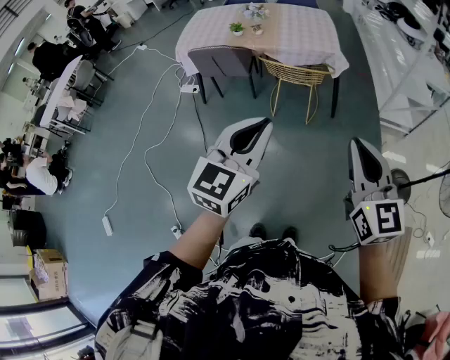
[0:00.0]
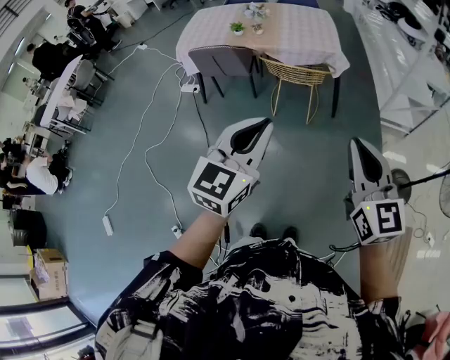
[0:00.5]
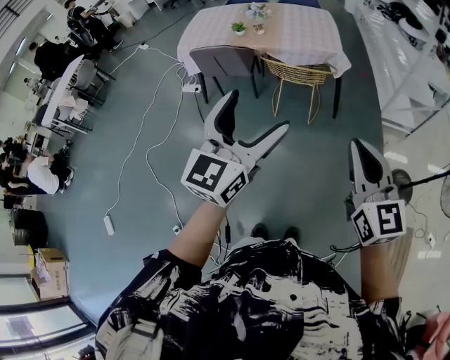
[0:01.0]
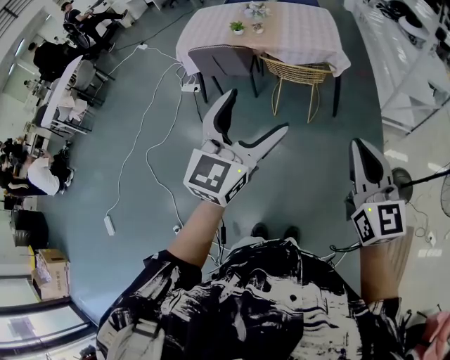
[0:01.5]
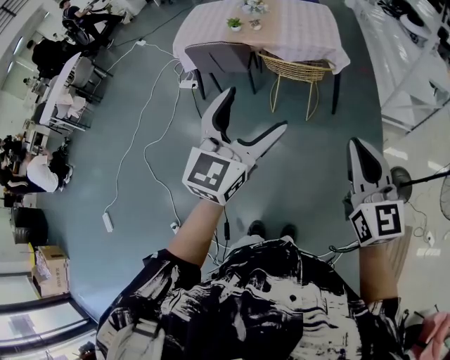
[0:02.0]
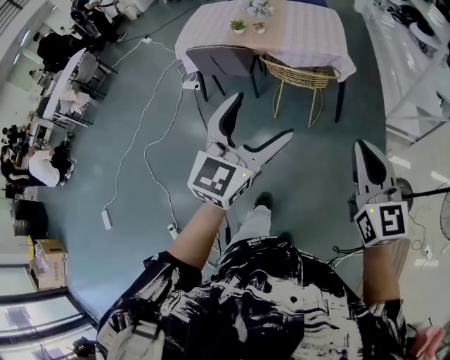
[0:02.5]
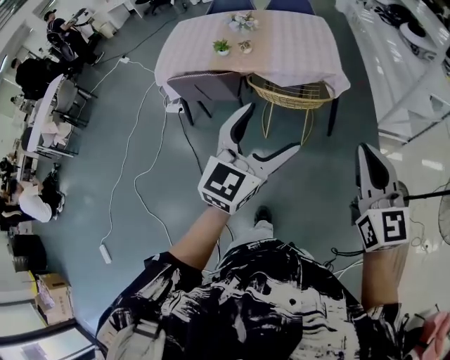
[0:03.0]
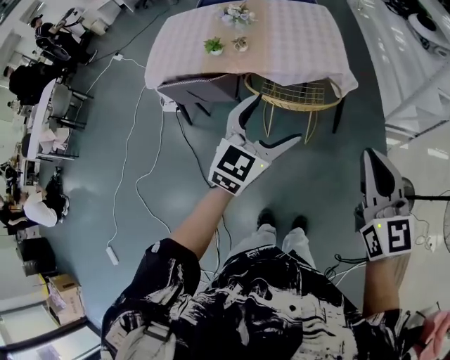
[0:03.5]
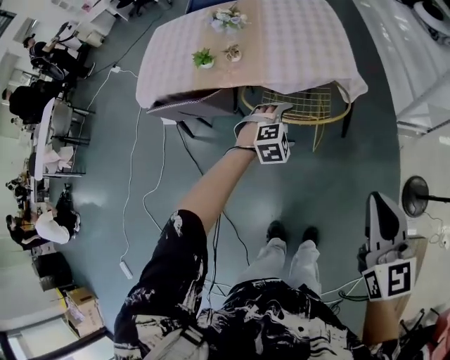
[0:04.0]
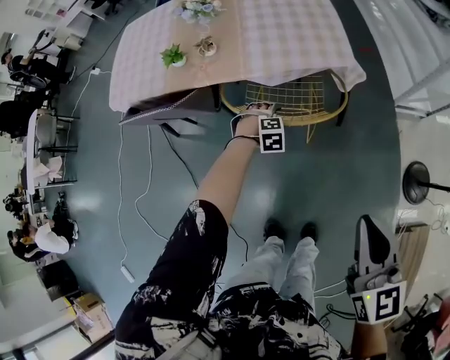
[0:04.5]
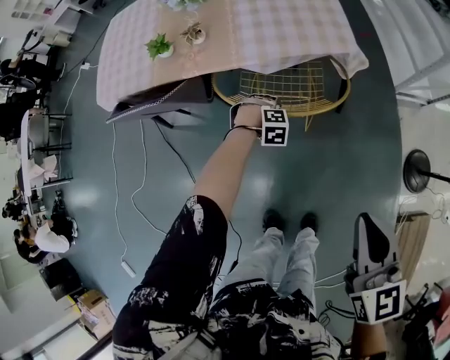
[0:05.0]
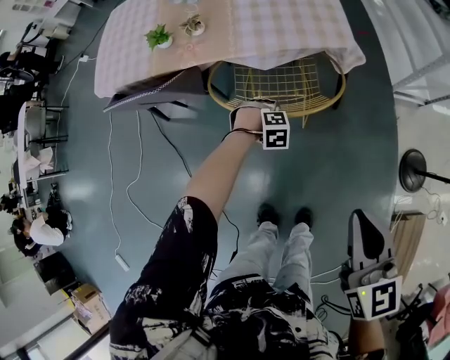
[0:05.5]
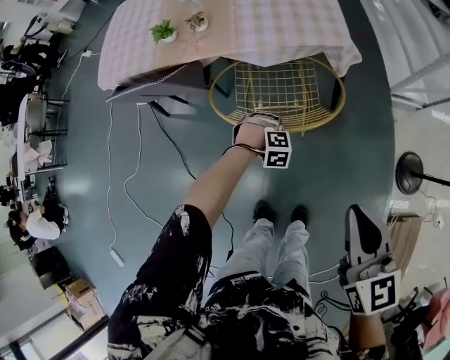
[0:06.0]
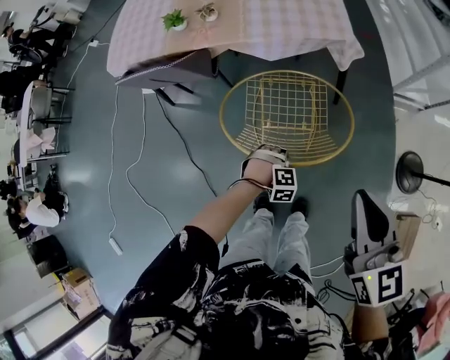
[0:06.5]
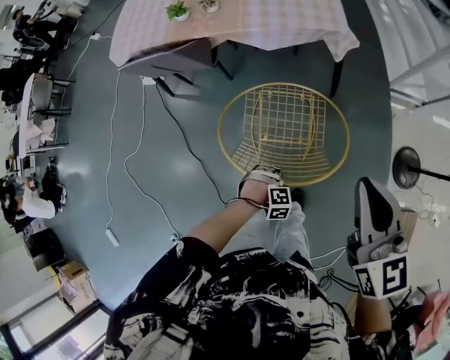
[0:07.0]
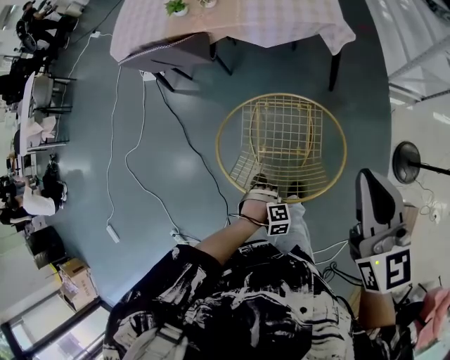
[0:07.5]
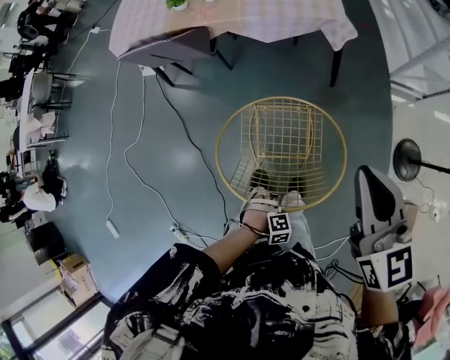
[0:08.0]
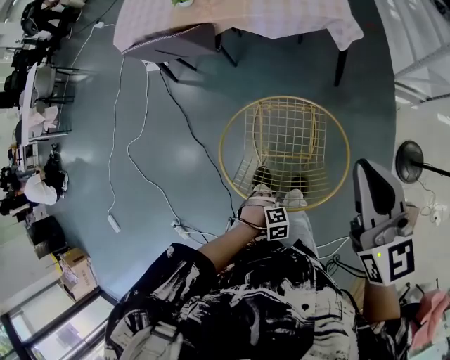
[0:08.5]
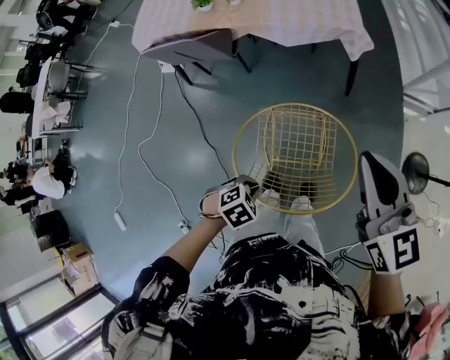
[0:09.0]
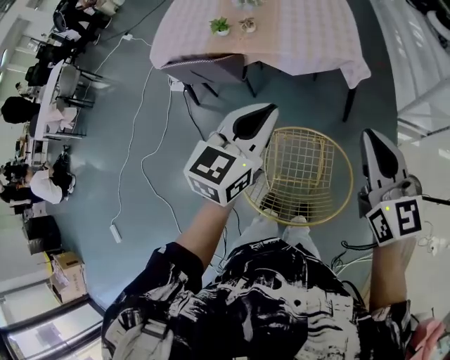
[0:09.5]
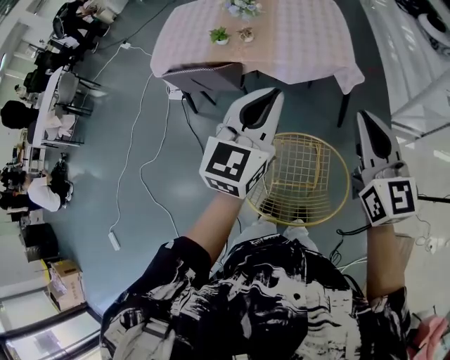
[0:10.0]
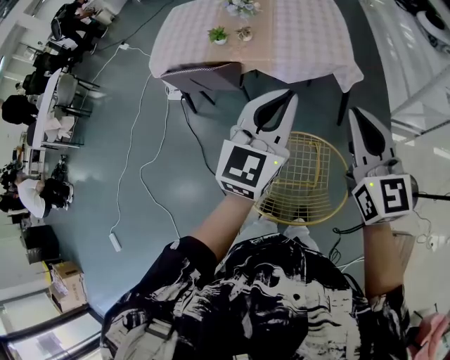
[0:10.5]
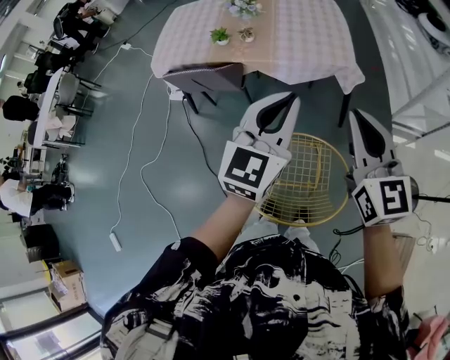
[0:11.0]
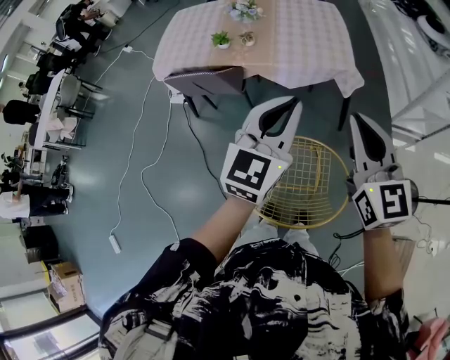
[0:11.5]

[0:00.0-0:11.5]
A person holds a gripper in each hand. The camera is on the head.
0:00.0 to 0:02.0: The left gripper opens up.
0:02.0 to 0:04.0: Both grippers are carried forward, roughly 50 cm. The left gripper heads downward, covering some 40 cm, and tilts its fingers about 60 degrees downward.
0:04.0 to 0:06.0: The right gripper moves downward, roughly 10 cm. The left gripper heads downward, covering roughly 20 cm, rotates about 20 degrees, and closes up.
0:06.0 to 0:07.5: The right gripper shifts about 10 cm upward. Meanwhile the left gripper ends up roughly 40 cm from where it was.
0:07.5 to 0:09.5: The left gripper shifts approximately 50 cm upward, and tips its fingers upward by roughly 70 degrees; the right gripper shifts by approximately 10 cm.
0:09.5 to 0:11.5: Both grippers move upward, about 5 cm.

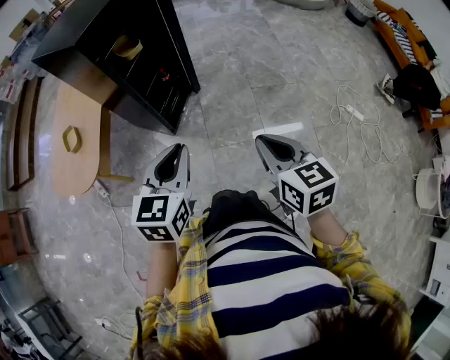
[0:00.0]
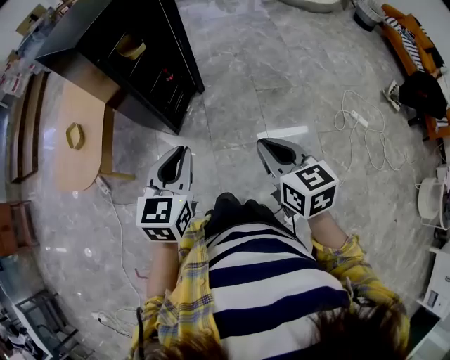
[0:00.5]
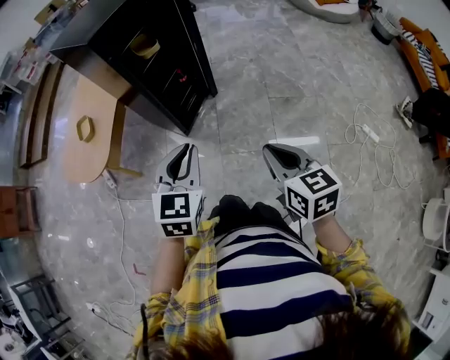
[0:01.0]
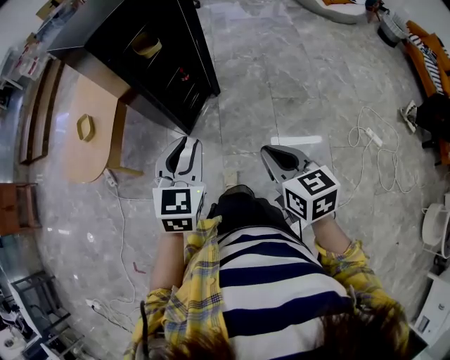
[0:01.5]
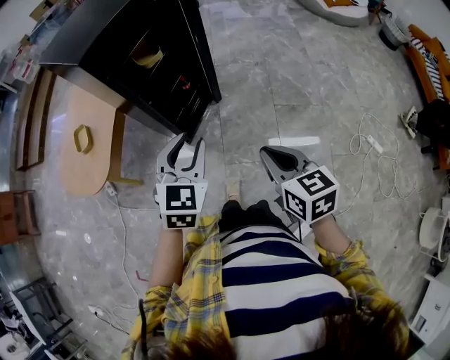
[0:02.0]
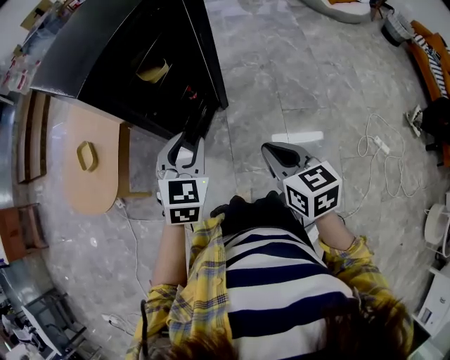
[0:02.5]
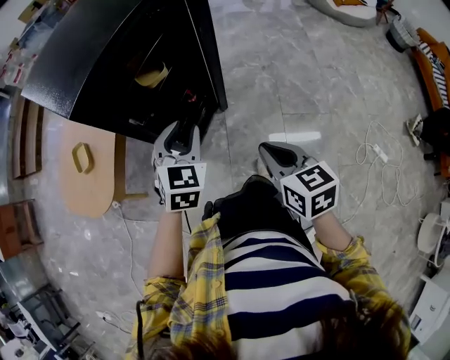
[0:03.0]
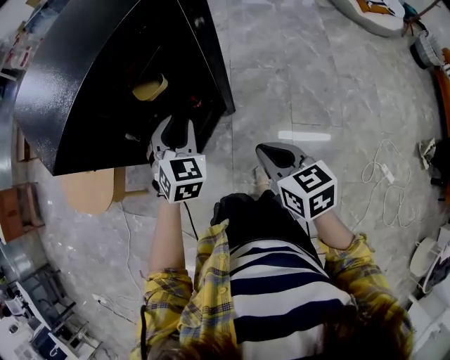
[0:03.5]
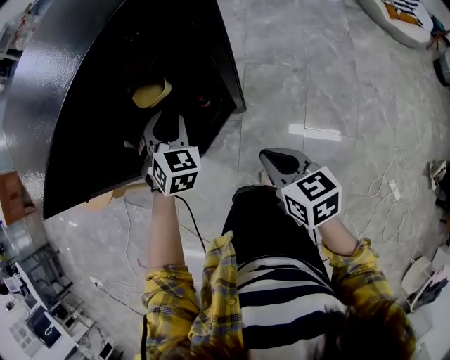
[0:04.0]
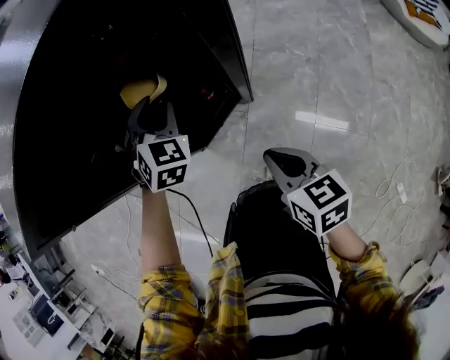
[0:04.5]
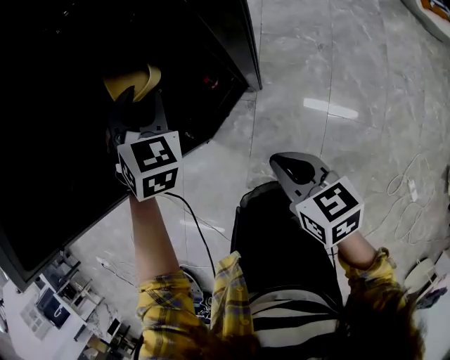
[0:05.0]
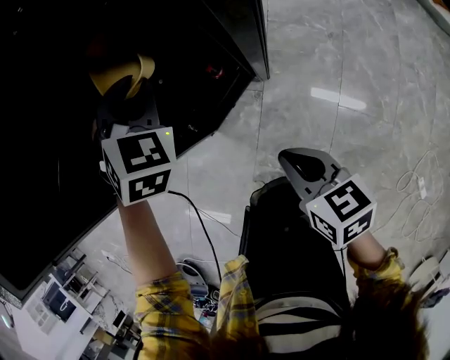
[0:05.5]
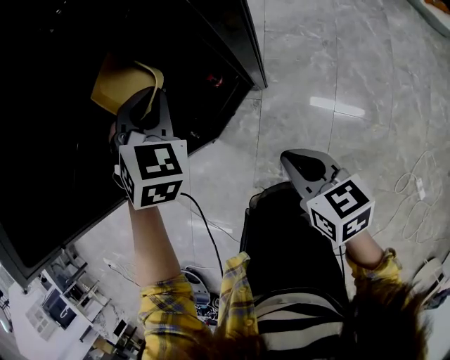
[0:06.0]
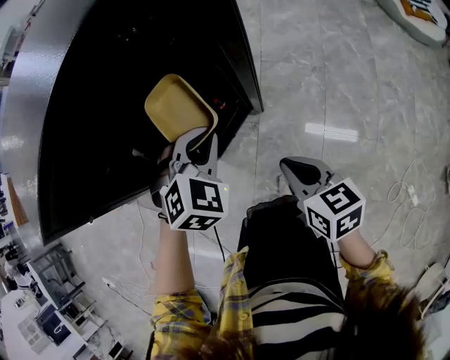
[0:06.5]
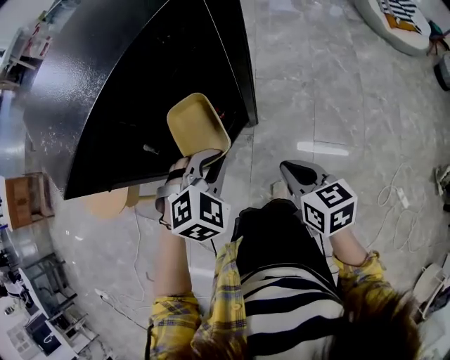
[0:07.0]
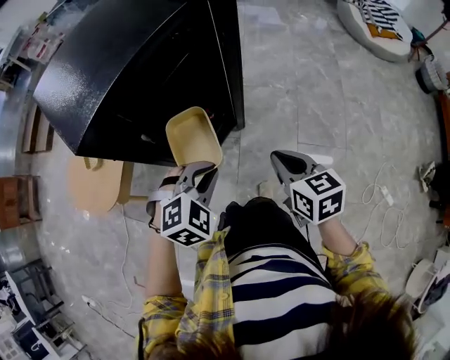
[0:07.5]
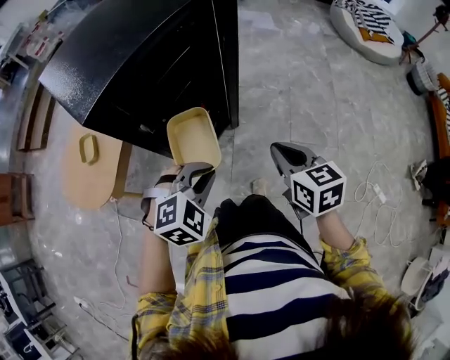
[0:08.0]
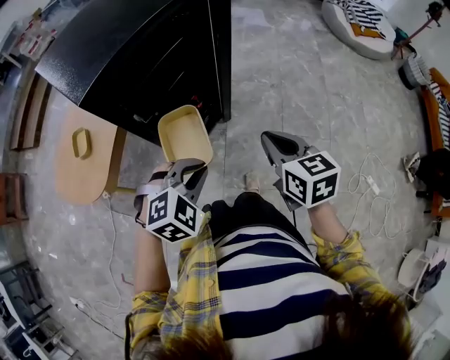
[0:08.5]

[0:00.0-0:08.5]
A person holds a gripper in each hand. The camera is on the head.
0:00.0 to 0:02.0: The grippers both shift forward by roughly 10 cm.
0:02.0 to 0:04.0: The right gripper shifts by about 25 cm. Meanwhile the left gripper changes place by roughly 35 cm, and turns by about 30 degrees.
0:04.0 to 0:06.5: The right gripper goes downward and returns, about 10 cm each way. Meanwhile the left gripper heads backward, covering approximately 5 cm, turns by some 20 degrees, and closes its fingers.
0:06.5 to 0:08.5: The left gripper is displaced backward by about 20 cm, and changes its angle by some 20 degrees; the right gripper heads upward and backward, covering roughly 15 cm.

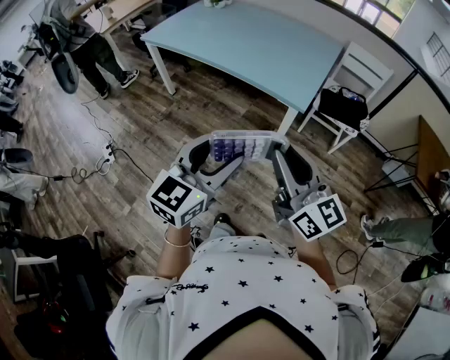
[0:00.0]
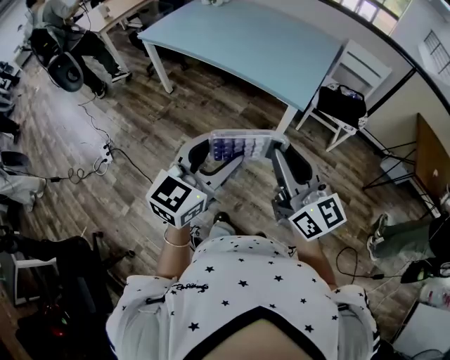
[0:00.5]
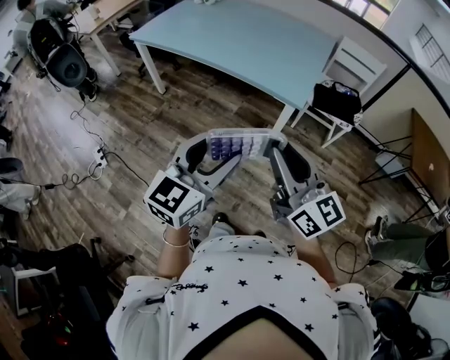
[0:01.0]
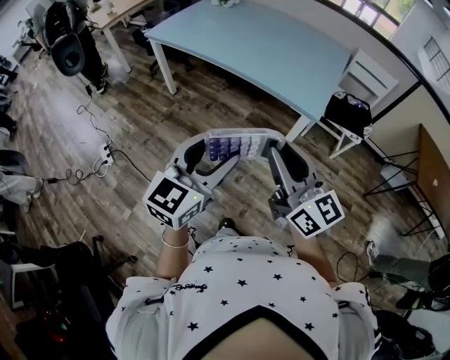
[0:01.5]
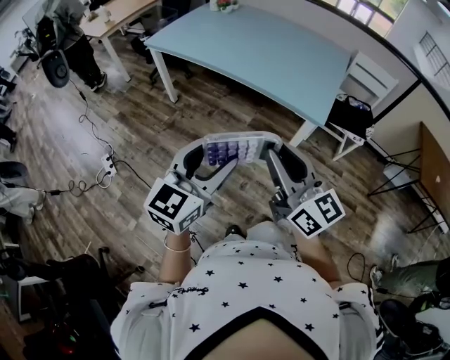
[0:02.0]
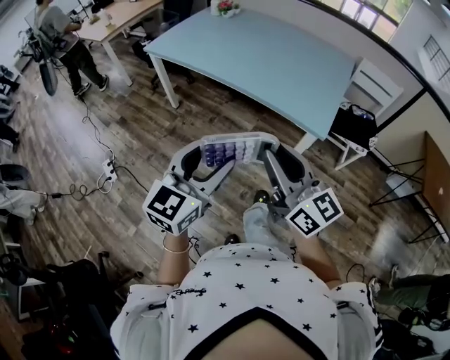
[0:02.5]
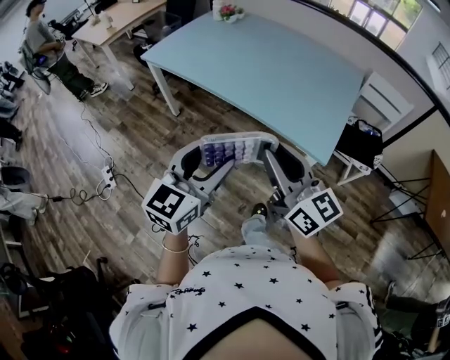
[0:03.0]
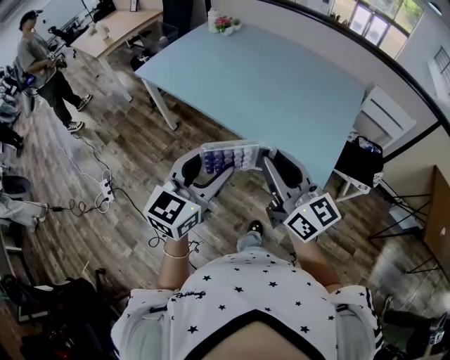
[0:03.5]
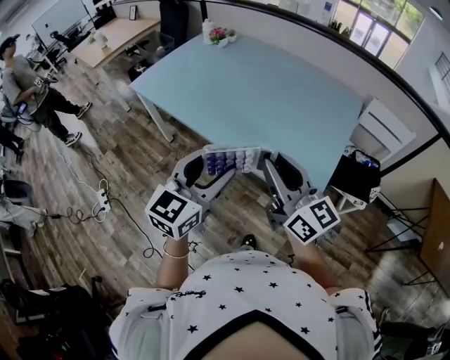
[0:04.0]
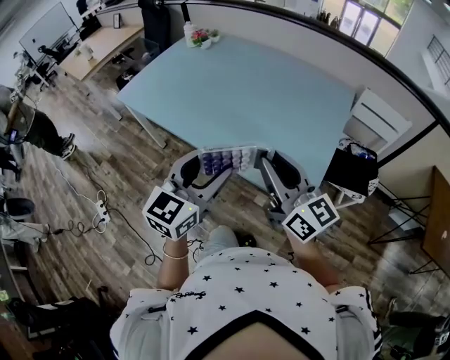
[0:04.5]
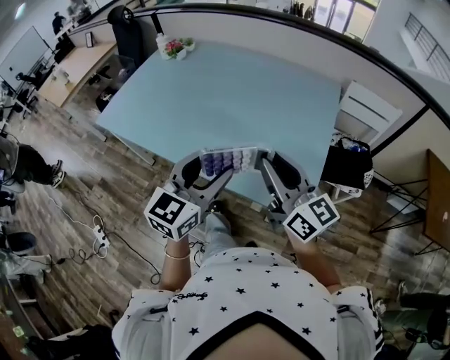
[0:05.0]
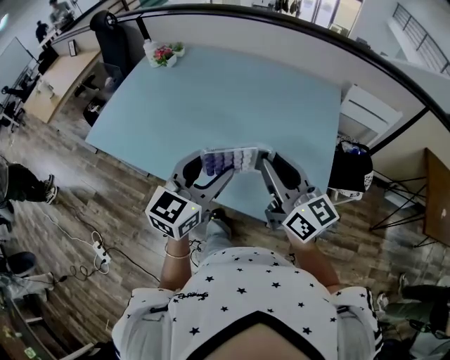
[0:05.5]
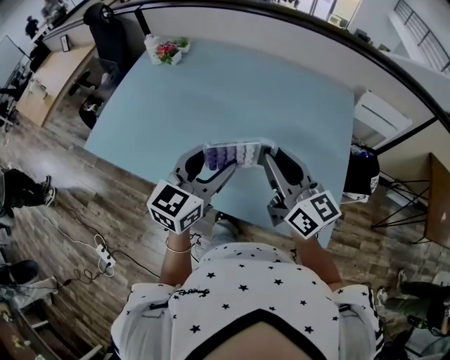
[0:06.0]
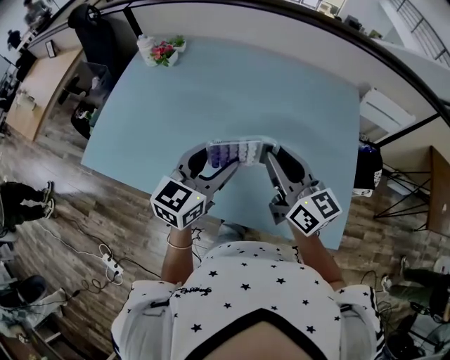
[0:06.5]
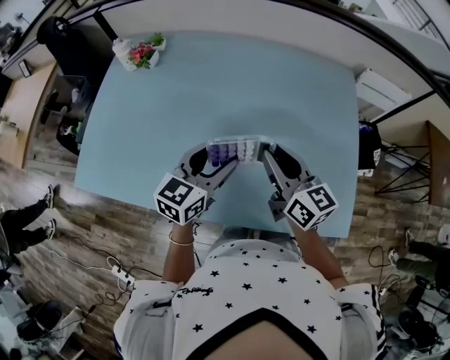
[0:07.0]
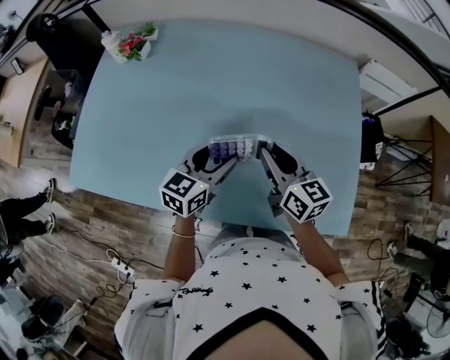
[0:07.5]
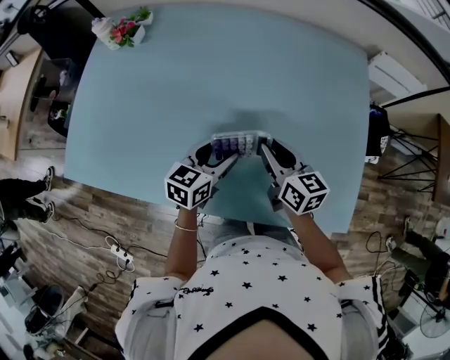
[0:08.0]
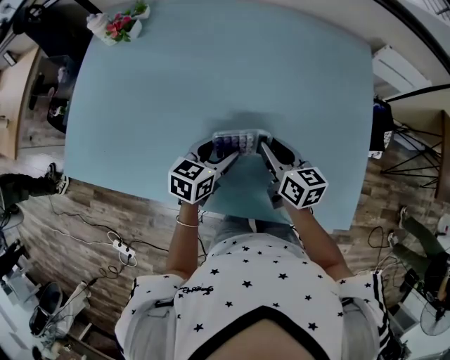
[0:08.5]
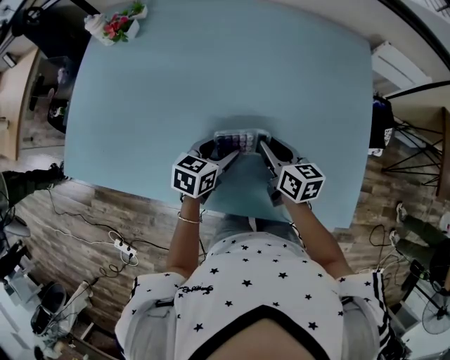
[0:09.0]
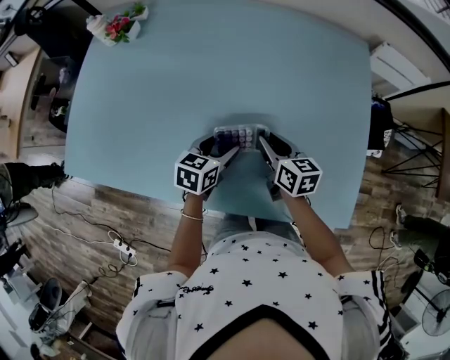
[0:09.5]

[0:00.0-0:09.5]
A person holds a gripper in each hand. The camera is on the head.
0:00.0 to 0:02.0: Both grippers travel together to the left and forward, some 15 cm.
0:02.0 to 0:04.0: Both grippers travel together forward, approximately 30 cm.
0:04.0 to 0:05.5: The grippers both shift forward by about 20 cm.
0:05.5 to 0:07.5: Both grippers move forward, downward and to the left, roughly 25 cm. The right gripper changes its angle by about 30 degrees. Meanwhile the left gripper rotates about 20 degrees.
0:07.5 to 0:09.5: The grippers both shift downward by roughly 10 cm.
